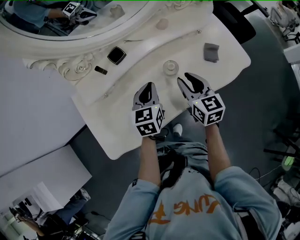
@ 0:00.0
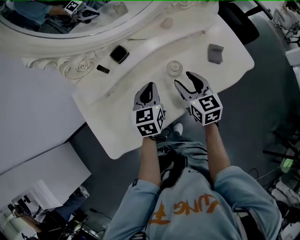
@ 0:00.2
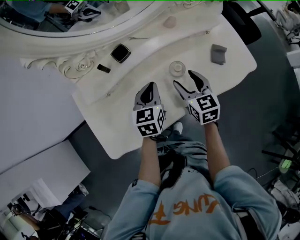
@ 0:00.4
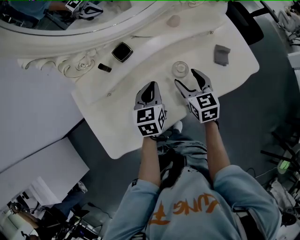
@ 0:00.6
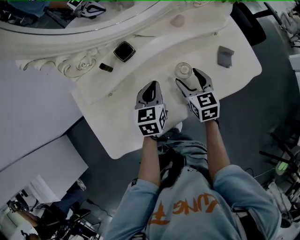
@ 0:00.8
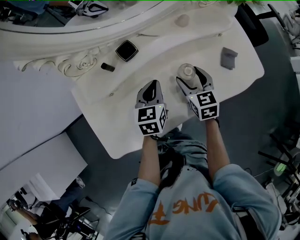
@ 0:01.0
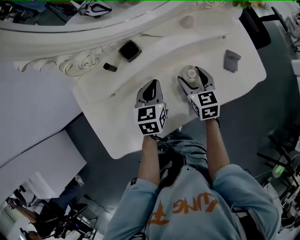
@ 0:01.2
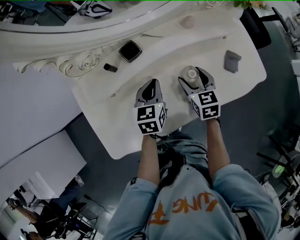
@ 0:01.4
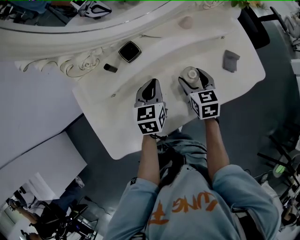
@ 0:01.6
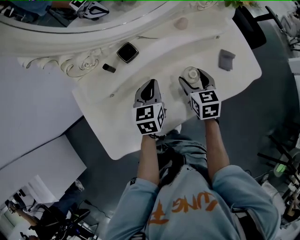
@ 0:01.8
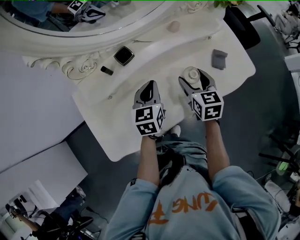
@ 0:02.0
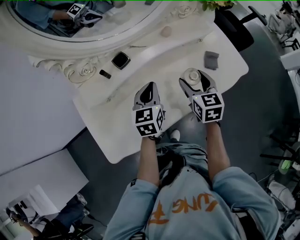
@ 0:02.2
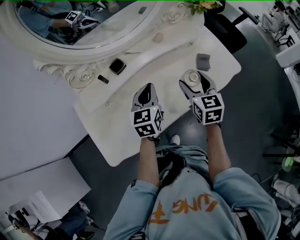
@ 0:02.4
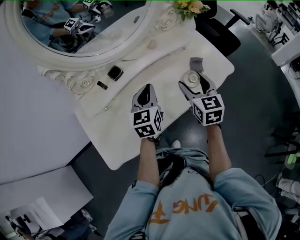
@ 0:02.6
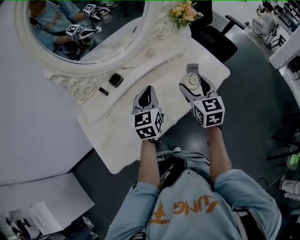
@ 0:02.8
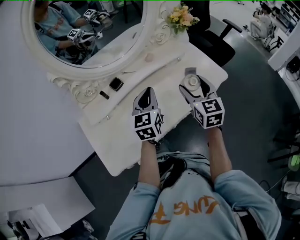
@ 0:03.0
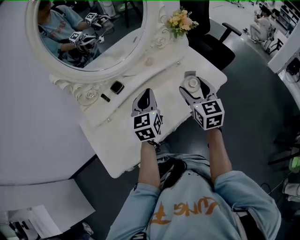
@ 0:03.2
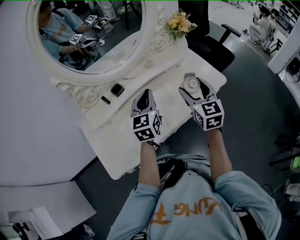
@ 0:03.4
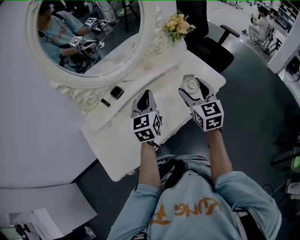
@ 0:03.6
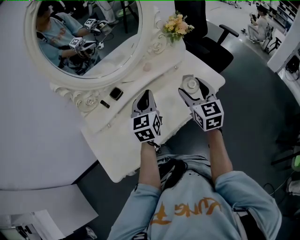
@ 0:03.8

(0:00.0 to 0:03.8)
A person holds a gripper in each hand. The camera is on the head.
0:00.0 - 0:01.2: The left gripper changes place by about 5 cm. The right gripper shifts approximately 10 cm downward and forward, and opens up.
0:01.2 - 0:02.6: The left gripper heads upward and to the right, covering roughly 15 cm; the right gripper travels upward, to the right and backward by approximately 20 cm.
0:02.6 - 0:03.8: Both grippers move upward, about 5 cm.

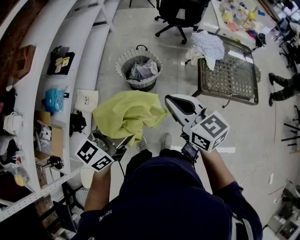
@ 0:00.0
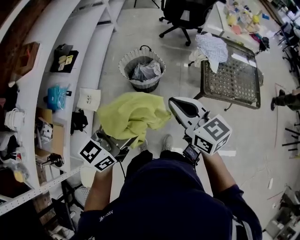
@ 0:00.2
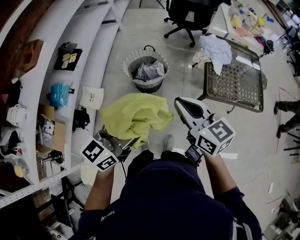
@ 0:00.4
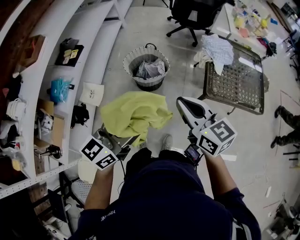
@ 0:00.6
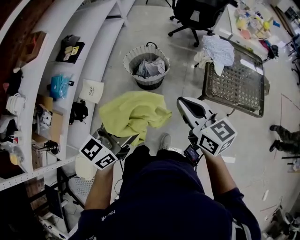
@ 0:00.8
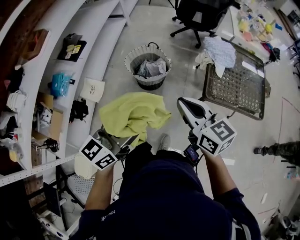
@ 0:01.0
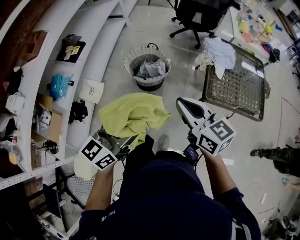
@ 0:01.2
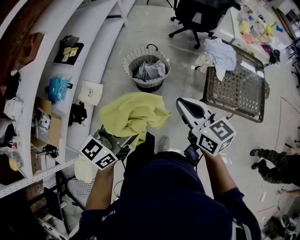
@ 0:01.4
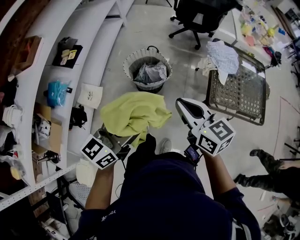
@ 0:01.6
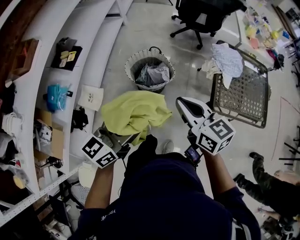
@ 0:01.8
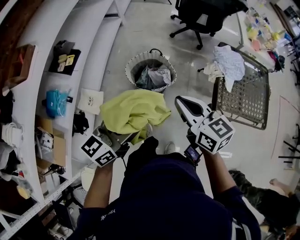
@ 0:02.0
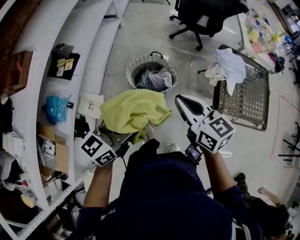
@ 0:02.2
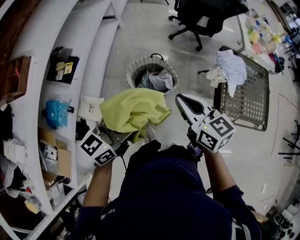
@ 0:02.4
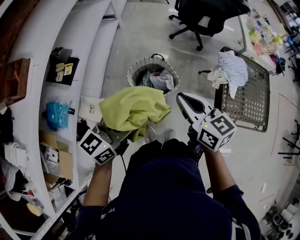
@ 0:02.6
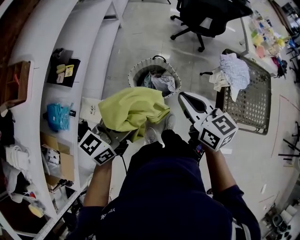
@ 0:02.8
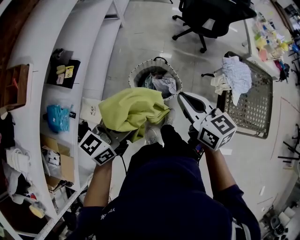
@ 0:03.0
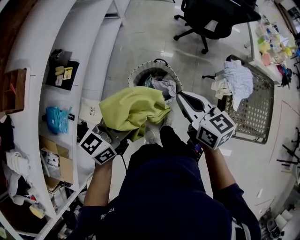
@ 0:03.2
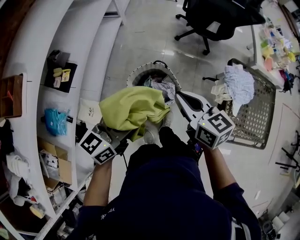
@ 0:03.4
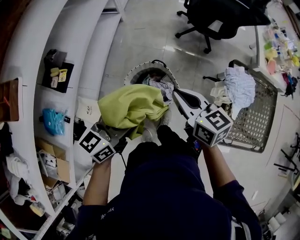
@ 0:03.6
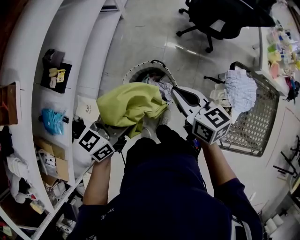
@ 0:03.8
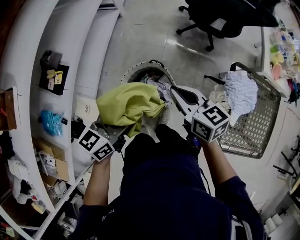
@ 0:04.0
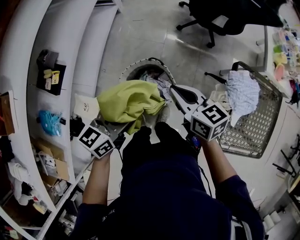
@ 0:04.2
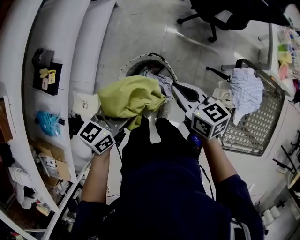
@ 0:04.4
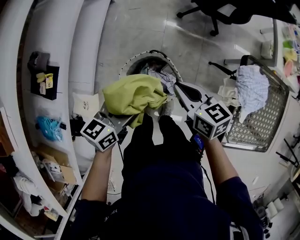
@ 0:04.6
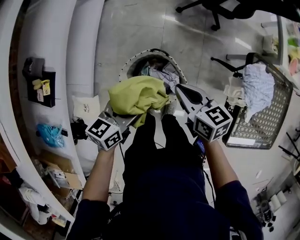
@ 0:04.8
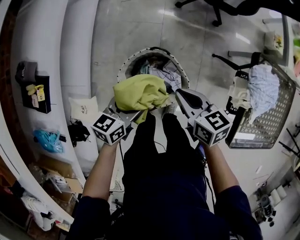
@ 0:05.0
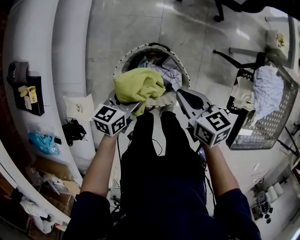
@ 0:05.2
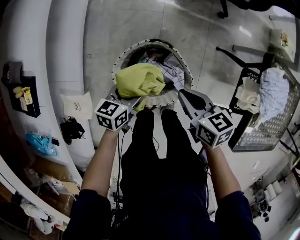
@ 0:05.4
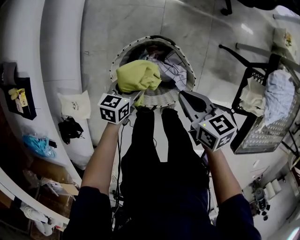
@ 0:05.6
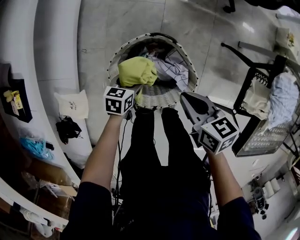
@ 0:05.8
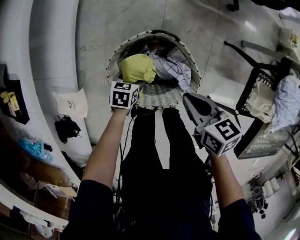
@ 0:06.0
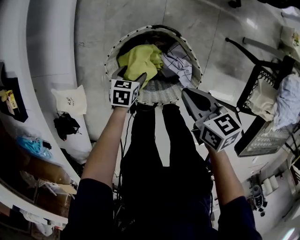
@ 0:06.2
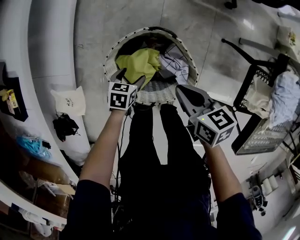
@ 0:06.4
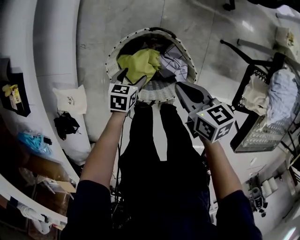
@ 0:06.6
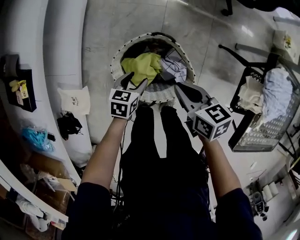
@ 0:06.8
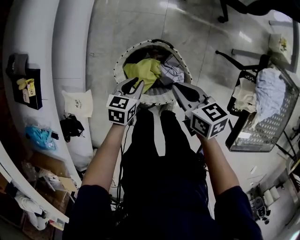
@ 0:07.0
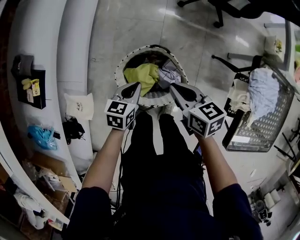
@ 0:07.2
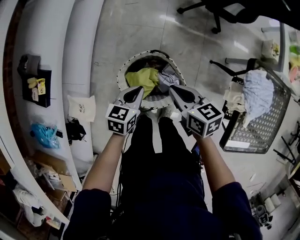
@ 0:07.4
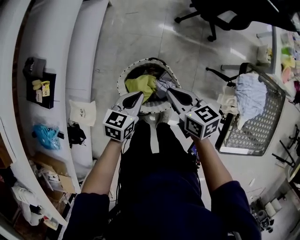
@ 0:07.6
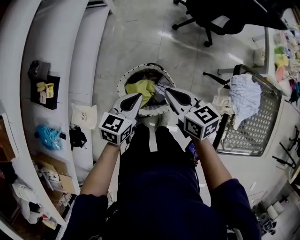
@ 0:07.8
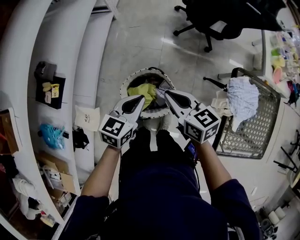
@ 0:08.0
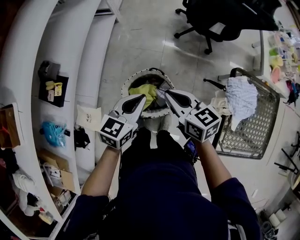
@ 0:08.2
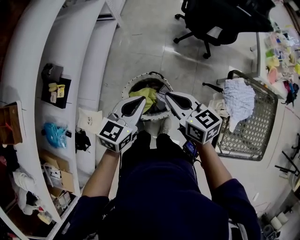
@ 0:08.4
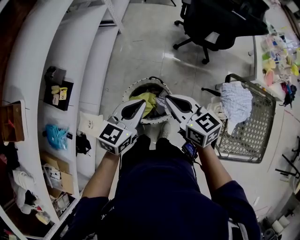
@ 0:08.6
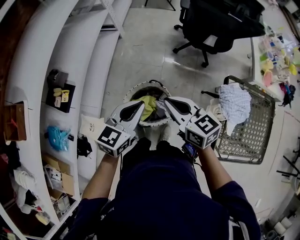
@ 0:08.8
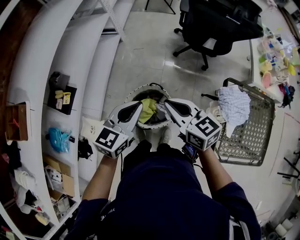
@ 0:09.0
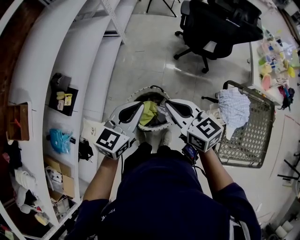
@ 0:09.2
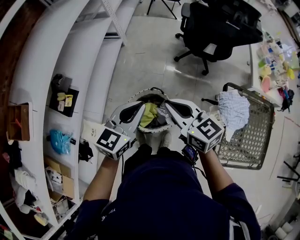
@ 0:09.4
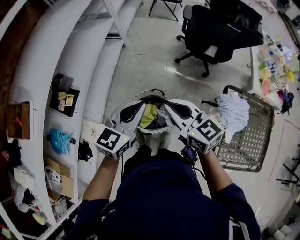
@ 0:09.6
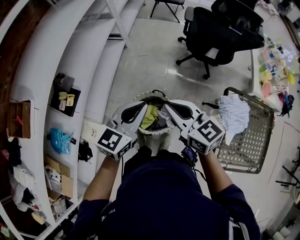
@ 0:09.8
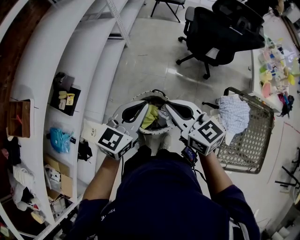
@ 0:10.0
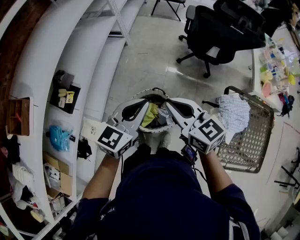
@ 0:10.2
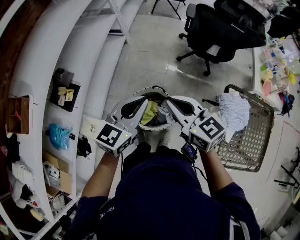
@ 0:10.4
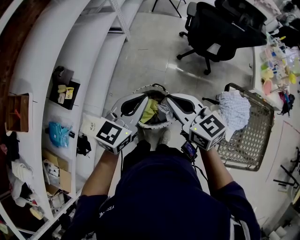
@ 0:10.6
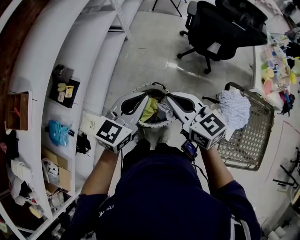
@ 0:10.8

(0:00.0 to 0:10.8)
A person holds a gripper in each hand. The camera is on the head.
0:00.0 - 0:01.6: The grippers both shift forward by about 5 cm.
0:01.6 - 0:03.0: Both grippers move forward and to the left, about 25 cm.
0:03.0 - 0:04.6: The grippers both shift forward and downward by some 25 cm.
0:04.6 - 0:06.2: The left gripper is displaced downward by roughly 50 cm, and tips its fingers downward by about 40 degrees; the right gripper shifts approximately 25 cm downward.
0:06.2 - 0:07.8: The left gripper moves upward, approximately 40 cm, turns by some 30 degrees, and closes. Meanwhile the right gripper travels upward by about 25 cm, and turns by roughly 20 degrees.
0:07.8 - 0:09.2: Both grippers move upward, some 20 cm.
0:09.2 - 0:10.8: The grippers make only small movements.

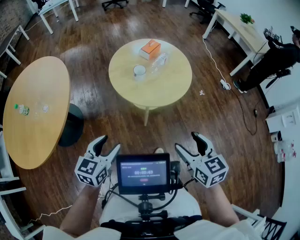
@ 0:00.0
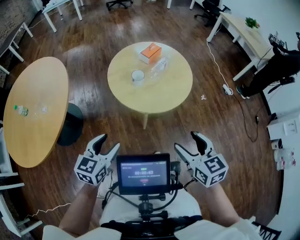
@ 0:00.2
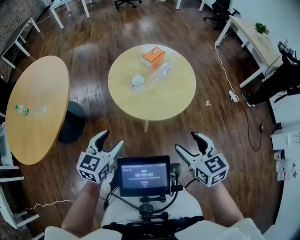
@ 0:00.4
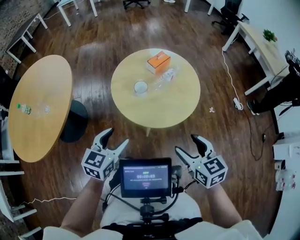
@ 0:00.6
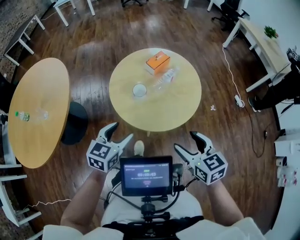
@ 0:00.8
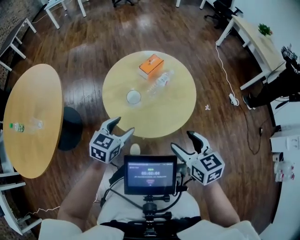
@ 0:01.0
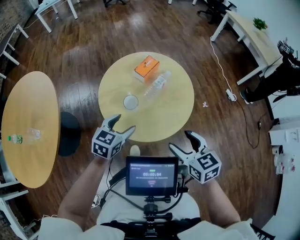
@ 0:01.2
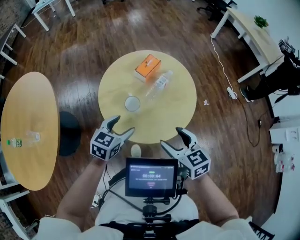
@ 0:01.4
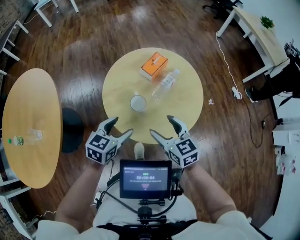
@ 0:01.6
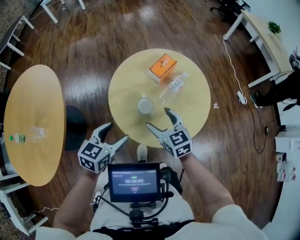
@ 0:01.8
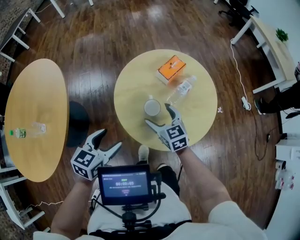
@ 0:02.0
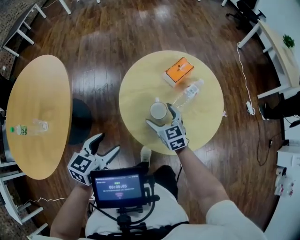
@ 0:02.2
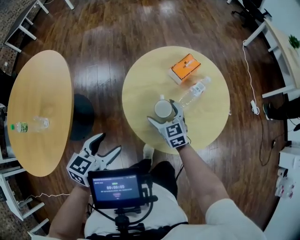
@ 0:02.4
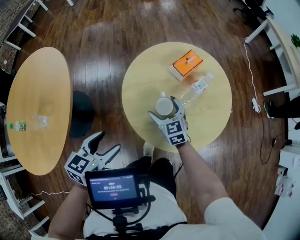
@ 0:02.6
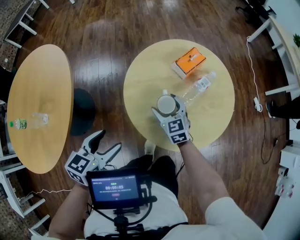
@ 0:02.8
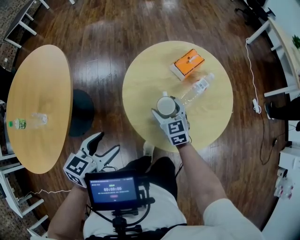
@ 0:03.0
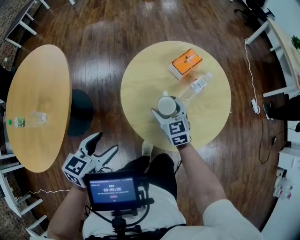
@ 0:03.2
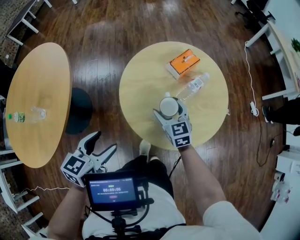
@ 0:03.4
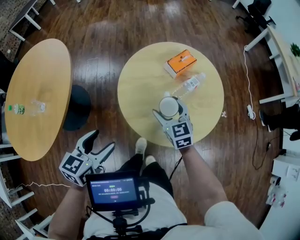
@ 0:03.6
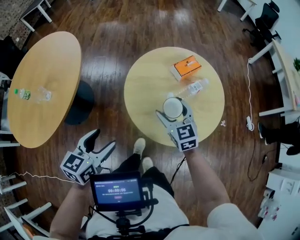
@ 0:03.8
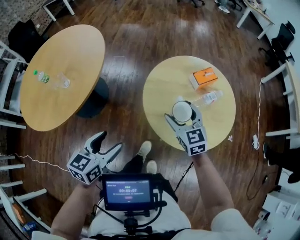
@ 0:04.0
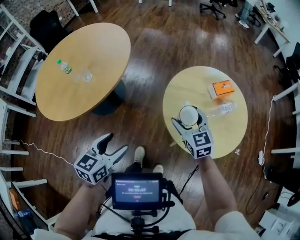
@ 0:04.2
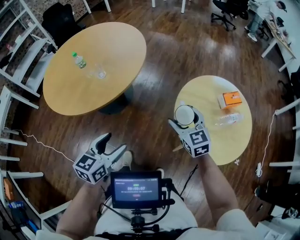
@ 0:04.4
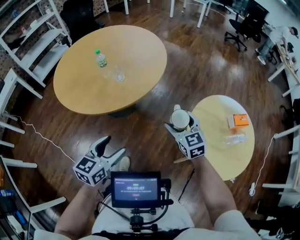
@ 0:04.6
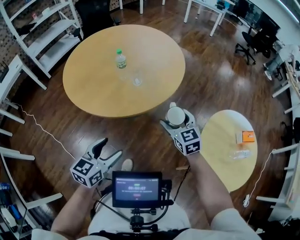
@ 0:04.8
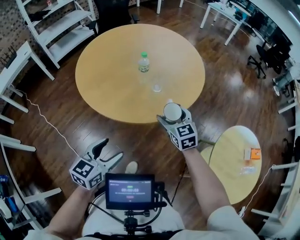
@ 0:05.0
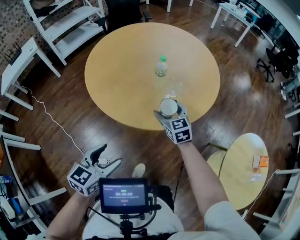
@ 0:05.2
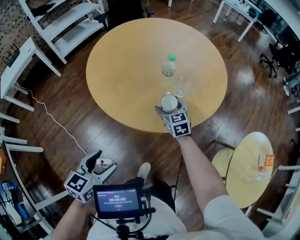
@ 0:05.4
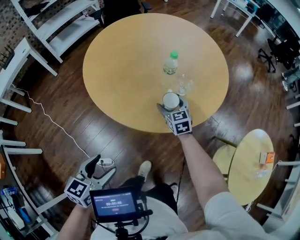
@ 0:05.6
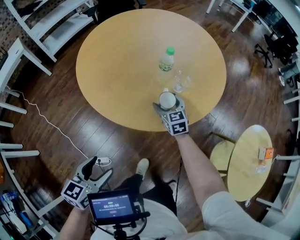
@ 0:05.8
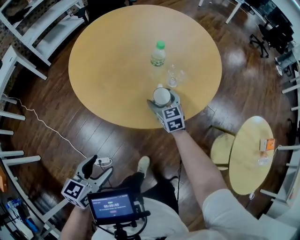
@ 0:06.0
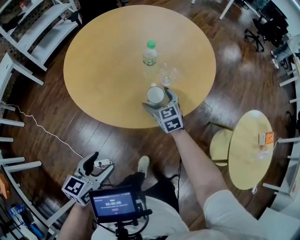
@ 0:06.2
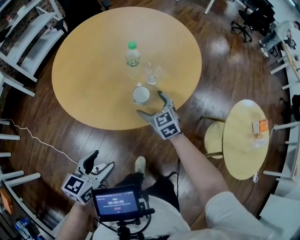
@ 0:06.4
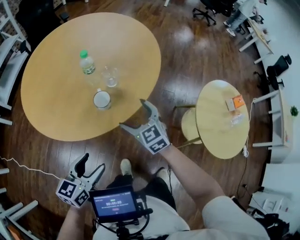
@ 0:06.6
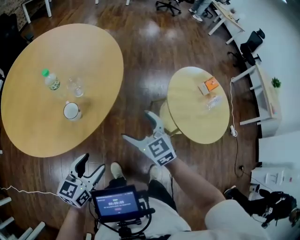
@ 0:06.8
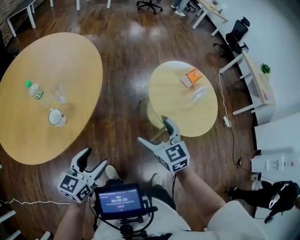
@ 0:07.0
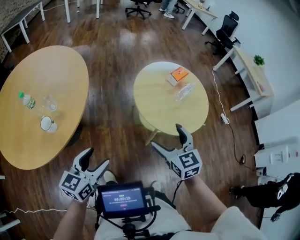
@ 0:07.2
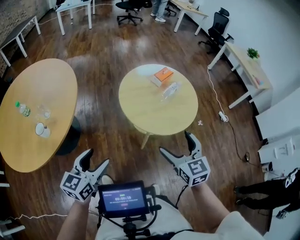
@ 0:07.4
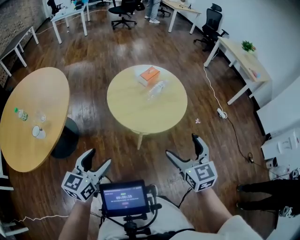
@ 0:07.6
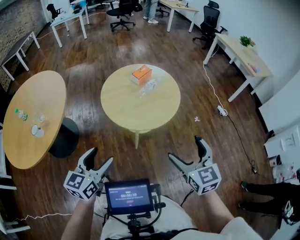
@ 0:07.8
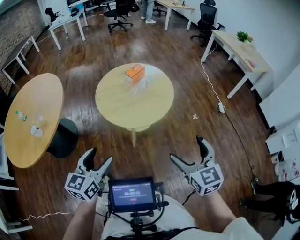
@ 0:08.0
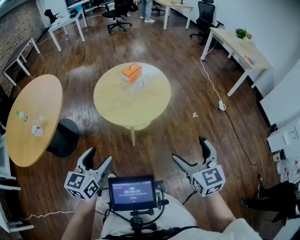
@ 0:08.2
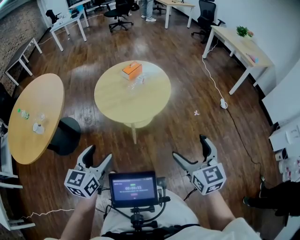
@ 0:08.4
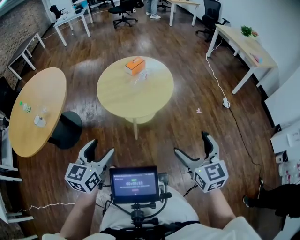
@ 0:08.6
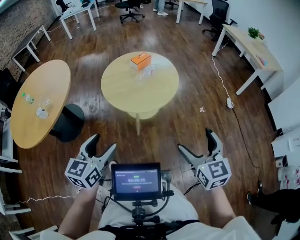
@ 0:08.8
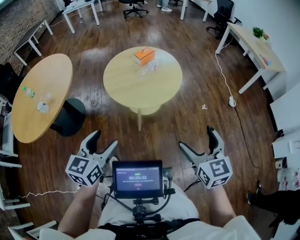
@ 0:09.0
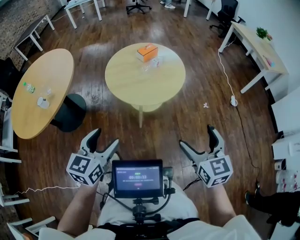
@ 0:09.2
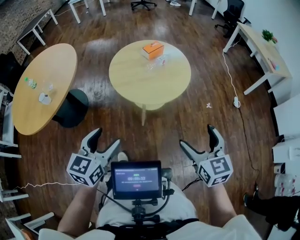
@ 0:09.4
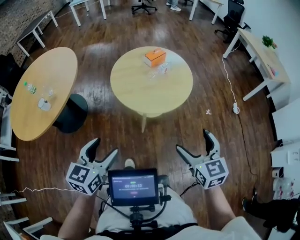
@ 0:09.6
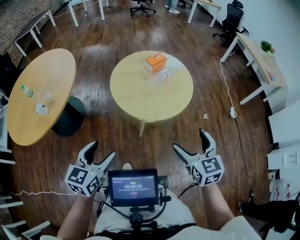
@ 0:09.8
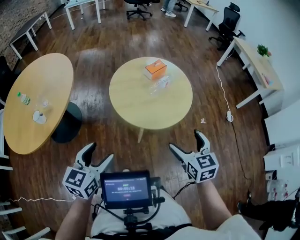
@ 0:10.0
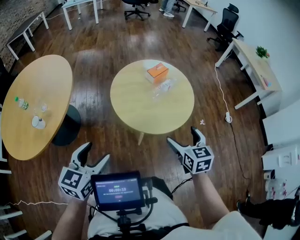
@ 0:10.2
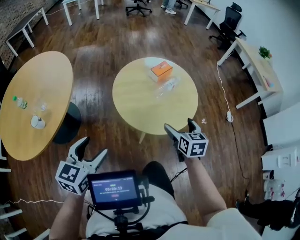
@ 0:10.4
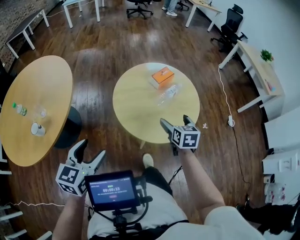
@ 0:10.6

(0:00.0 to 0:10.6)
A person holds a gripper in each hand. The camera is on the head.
0:00.0 - 0:01.6: The two grippers go approximately 30 cm forward.
0:01.6 - 0:03.0: The right gripper moves downward, forward and to the left, approximately 20 cm. The left gripper shifts approximately 15 cm to the left.
0:03.0 - 0:04.6: The right gripper changes place by roughly 30 cm, and rotates some 40 degrees, while the left gripper changes place by about 30 cm, and rotates approximately 40 degrees.
0:04.6 - 0:06.0: The left gripper is displaced to the left by roughly 30 cm, while the right gripper is displaced to the left, forward and downward by some 50 cm.
0:06.0 - 0:07.6: Both grippers are carried roughly 60 cm. The right gripper changes its angle by about 60 degrees. Meanwhile the left gripper swivels approximately 50 degrees.
0:07.6 - 0:09.0: The left gripper goes approximately 15 cm to the right. The right gripper goes approximately 20 cm to the right and backward.
0:09.0 - 0:10.6: The left gripper travels to the left and forward by some 25 cm. Meanwhile the right gripper heads forward, to the left and downward, covering approximately 40 cm, and rotates approximately 20 degrees.
